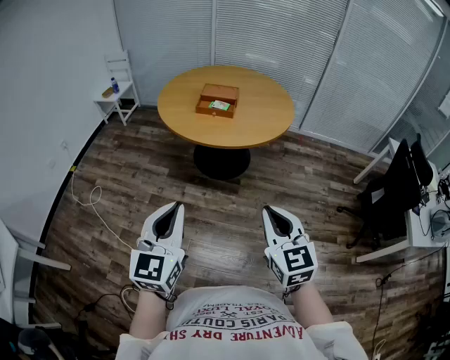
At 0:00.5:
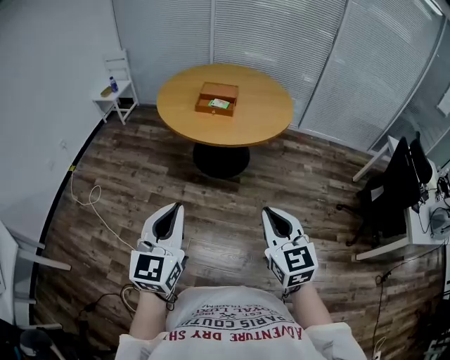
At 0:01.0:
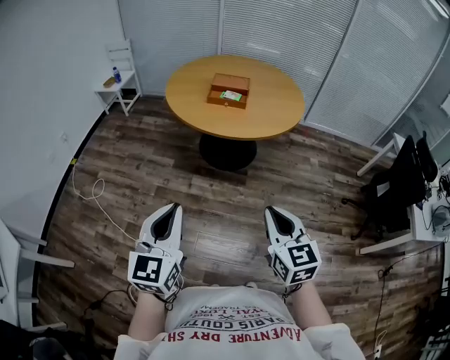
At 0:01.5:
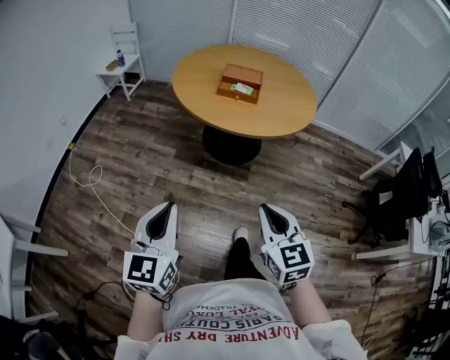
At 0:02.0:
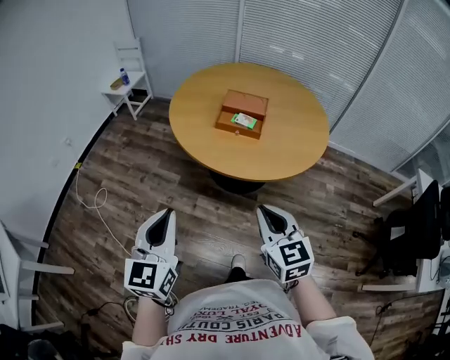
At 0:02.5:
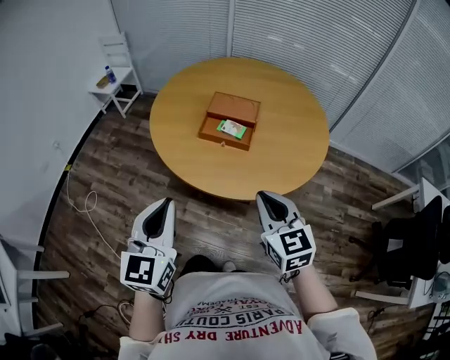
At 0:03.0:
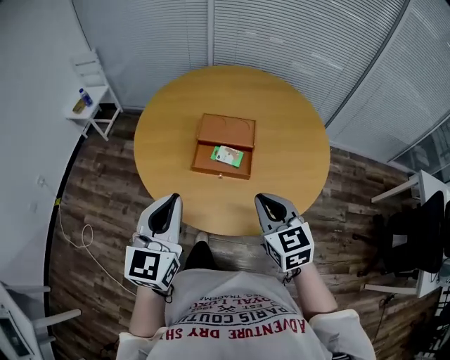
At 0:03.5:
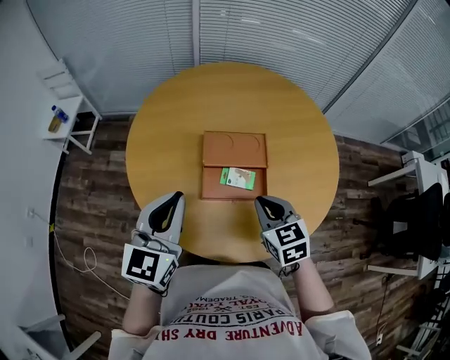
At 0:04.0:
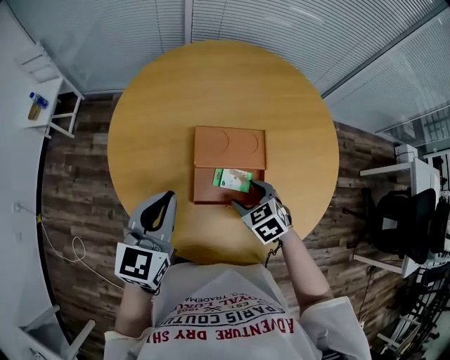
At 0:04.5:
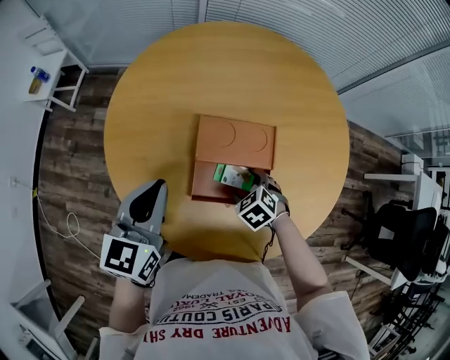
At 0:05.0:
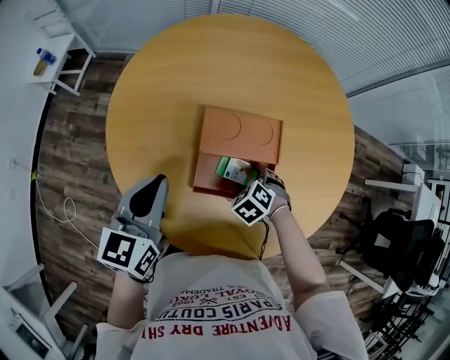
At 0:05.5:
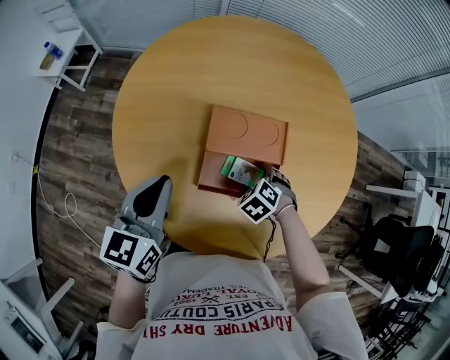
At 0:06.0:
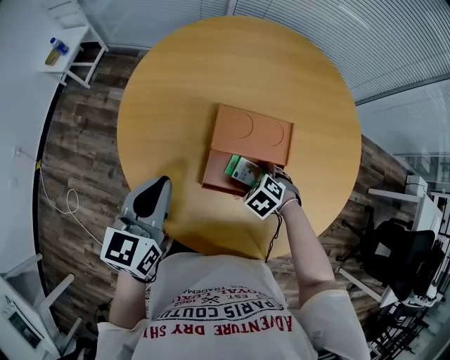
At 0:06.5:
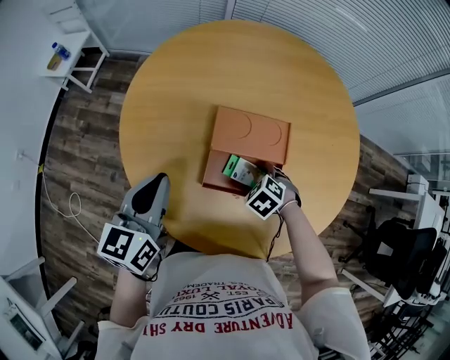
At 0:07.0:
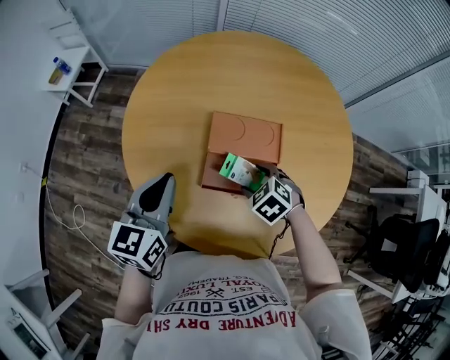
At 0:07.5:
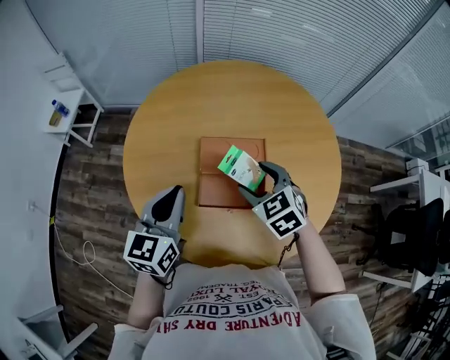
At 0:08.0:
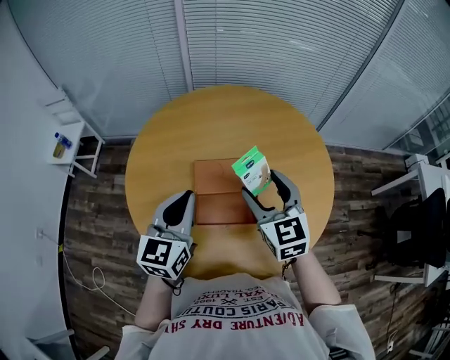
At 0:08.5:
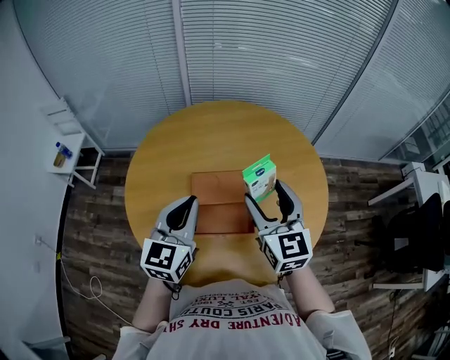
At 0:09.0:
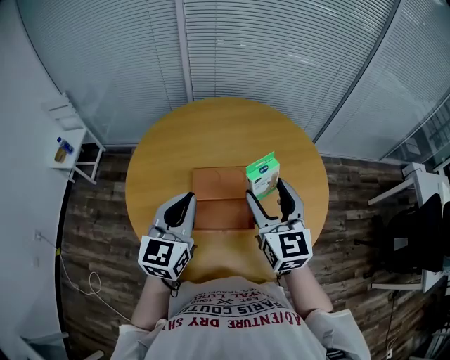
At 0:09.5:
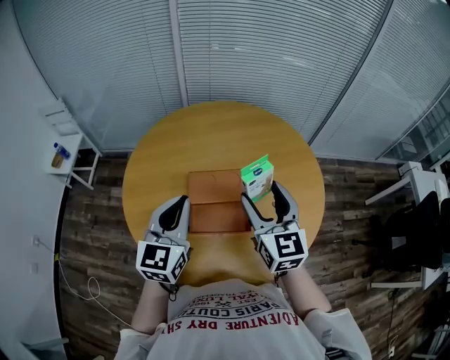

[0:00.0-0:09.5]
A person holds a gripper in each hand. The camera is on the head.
0:00.0 to 0:02.0: Both grippers move forward, some 25 cm.
0:02.0 to 0:04.0: The pair of grippers is taken forward, roughly 50 cm. The left gripper rotates approximately 30 degrees; the right gripper goes some 20 cm downward, tips its fingers downward by about 40 degrees, and opens up.
0:04.0 to 0:05.5: The right gripper travels downward by some 10 cm, and turns by approximately 30 degrees.
0:05.5 to 0:07.5: The left gripper moves upward, about 5 cm. The right gripper is displaced upward by roughly 20 cm, and points its fingers approximately 30 degrees further upward.
0:07.5 to 0:09.5: The right gripper shifts roughly 15 cm upward and to the right, and points its fingers some 40 degrees further upward. The left gripper heads upward and to the right, covering about 10 cm.

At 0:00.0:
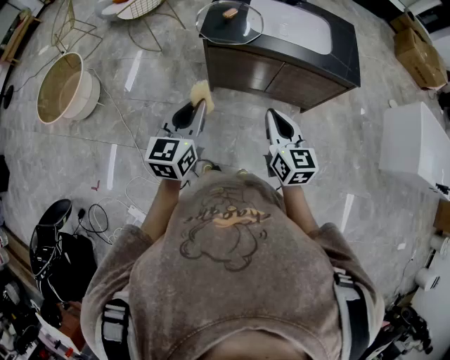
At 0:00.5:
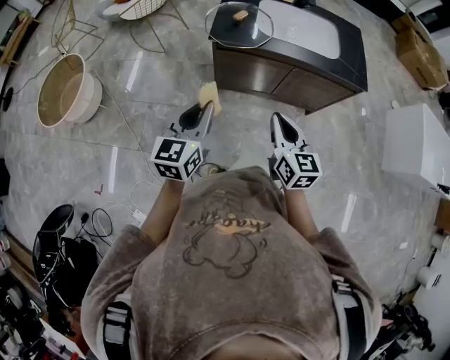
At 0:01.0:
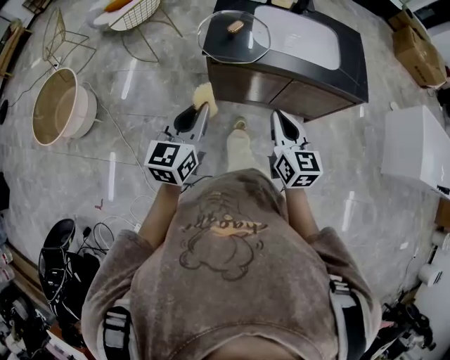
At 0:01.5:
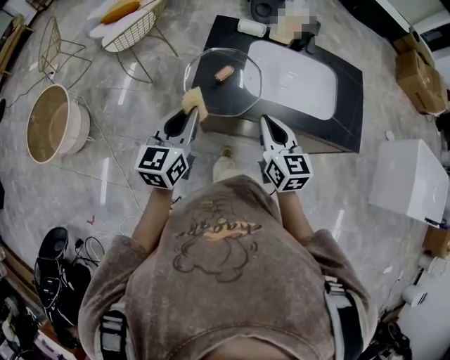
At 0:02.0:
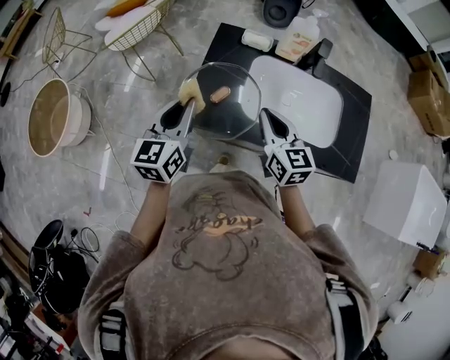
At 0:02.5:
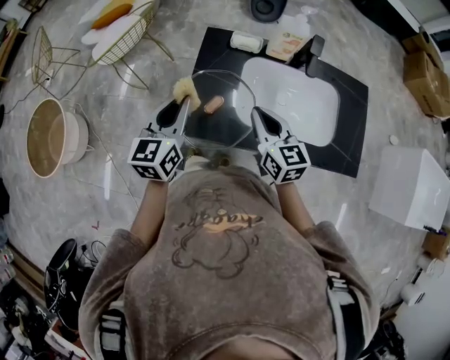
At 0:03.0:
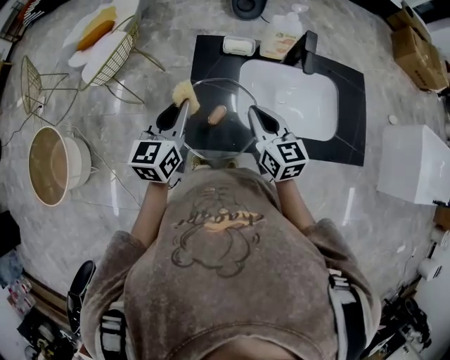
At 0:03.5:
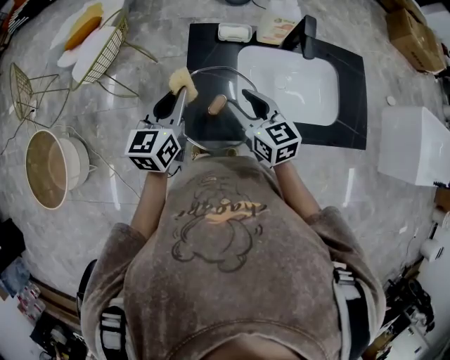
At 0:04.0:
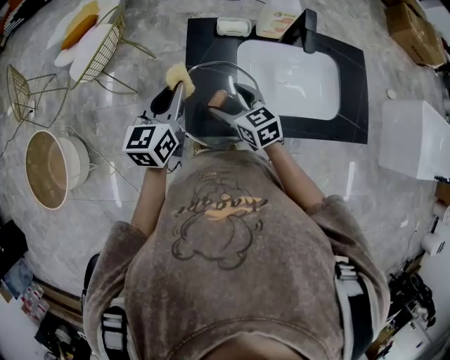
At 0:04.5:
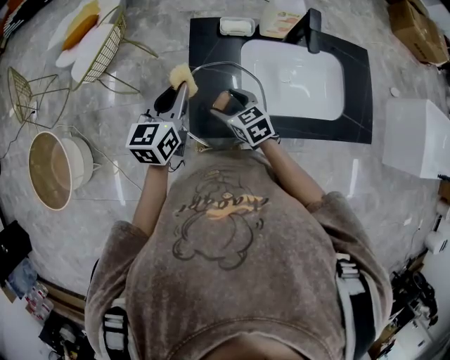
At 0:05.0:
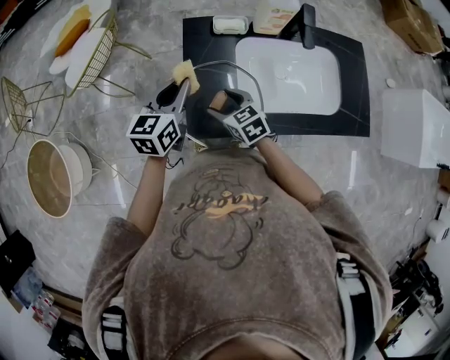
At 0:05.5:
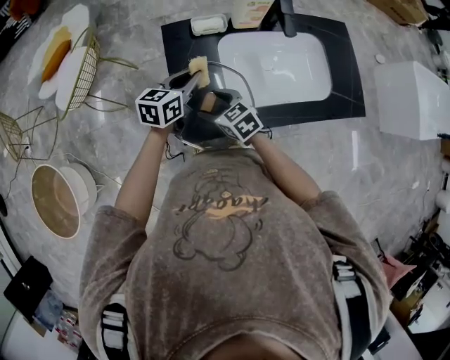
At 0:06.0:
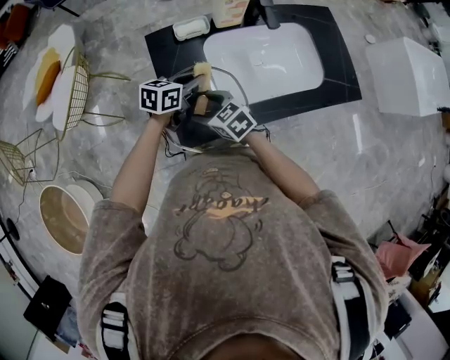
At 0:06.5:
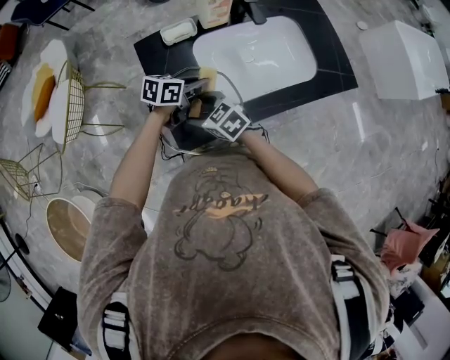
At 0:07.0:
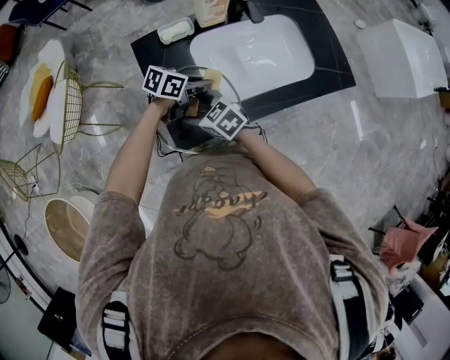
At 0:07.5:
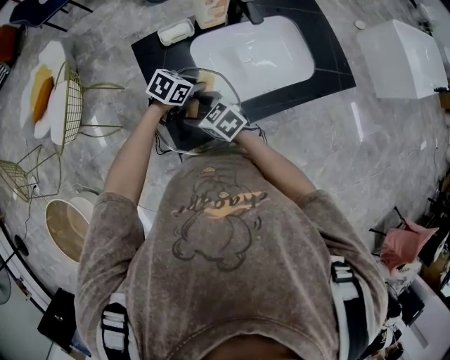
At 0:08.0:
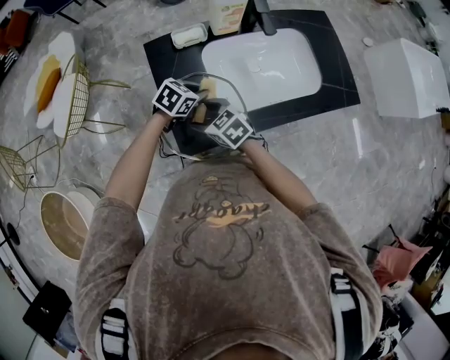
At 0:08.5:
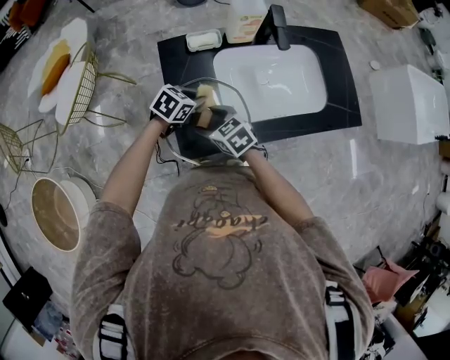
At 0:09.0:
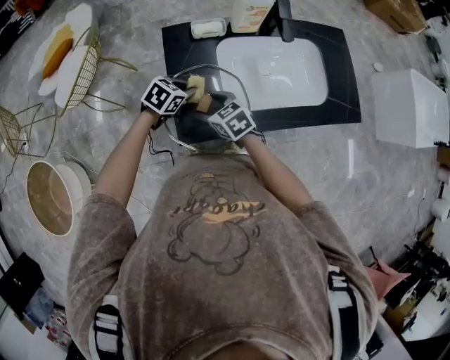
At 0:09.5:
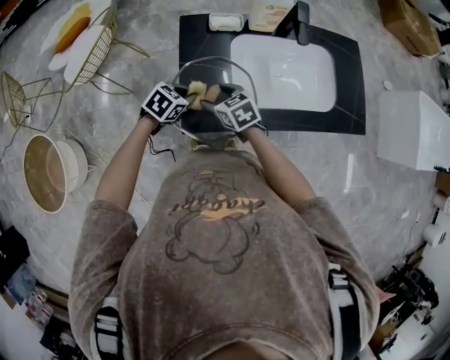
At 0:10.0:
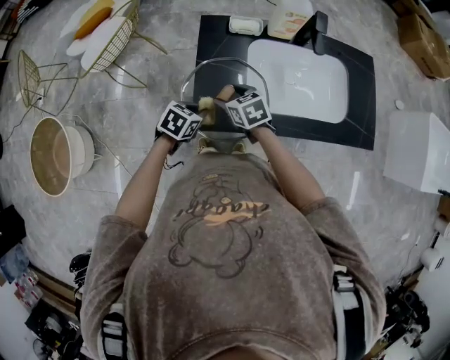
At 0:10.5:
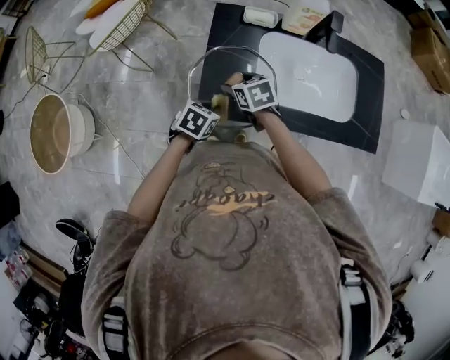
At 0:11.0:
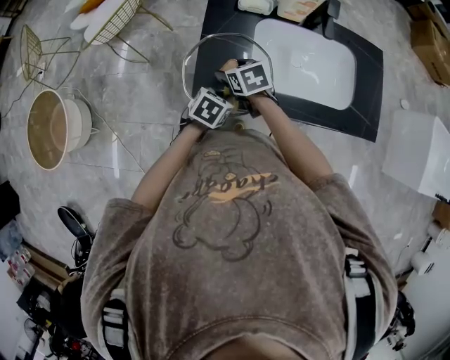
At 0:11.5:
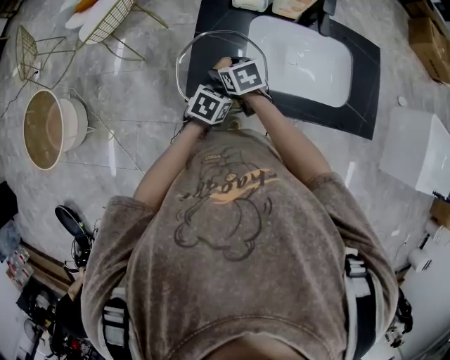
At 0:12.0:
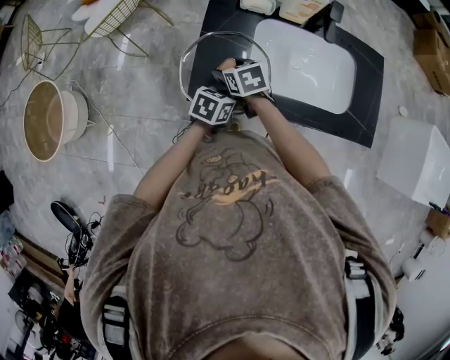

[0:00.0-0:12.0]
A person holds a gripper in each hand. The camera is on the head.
0:00.0 to 0:02.0: Both grippers are carried forward, some 50 cm.
0:02.0 to 0:04.0: The left gripper goes approximately 10 cm forward; the right gripper is displaced to the left, downward and forward by about 15 cm, and opens.
0:04.0 to 0:06.0: The left gripper moves downward, to the right and forward, about 20 cm, and changes its angle by about 50 degrees. The right gripper moves downward, approximately 5 cm.
0:06.0 to 0:08.0: The left gripper moves about 5 cm, and turns by approximately 30 degrees.
0:08.0 to 0:10.0: The left gripper ends up approximately 15 cm from where it was, and swivels approximately 30 degrees.
0:10.0 to 0:12.0: The left gripper moves to the right, about 10 cm, and turns by approximately 20 degrees.

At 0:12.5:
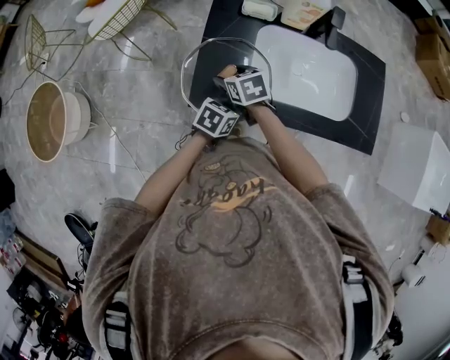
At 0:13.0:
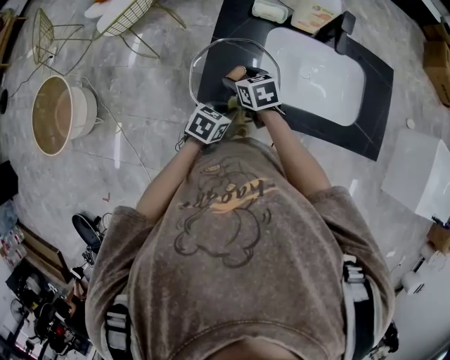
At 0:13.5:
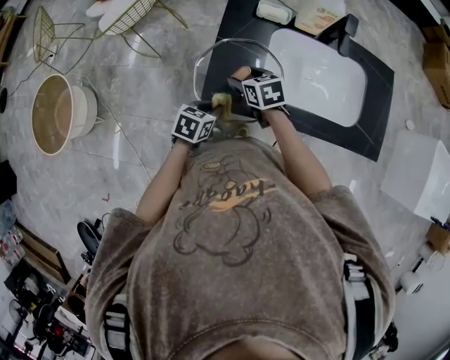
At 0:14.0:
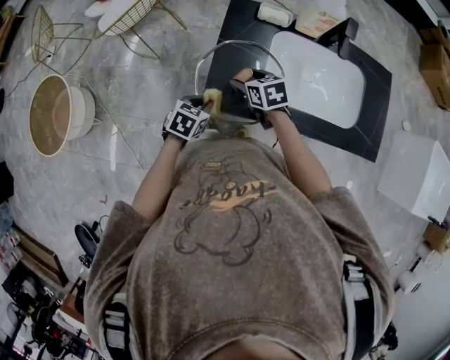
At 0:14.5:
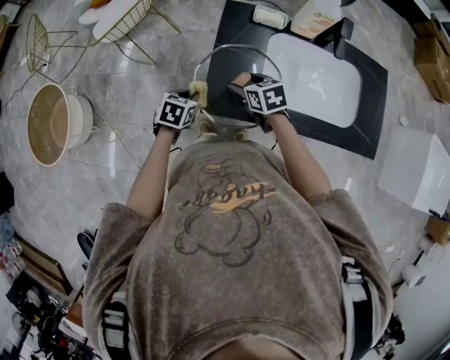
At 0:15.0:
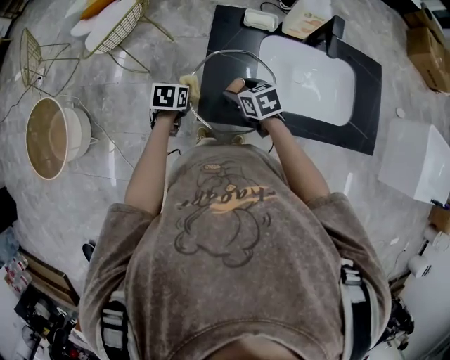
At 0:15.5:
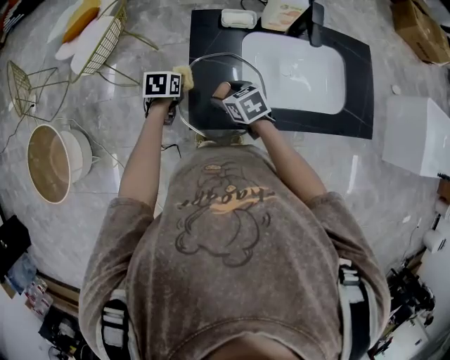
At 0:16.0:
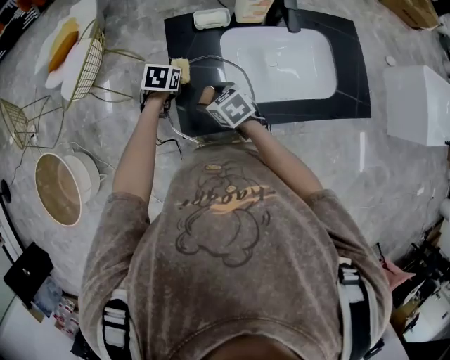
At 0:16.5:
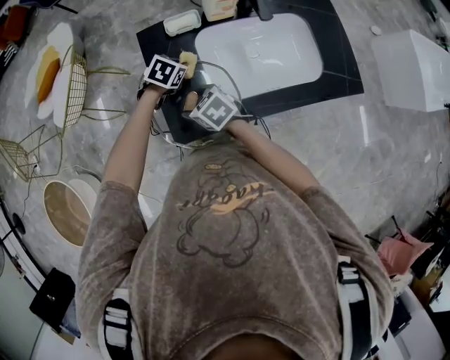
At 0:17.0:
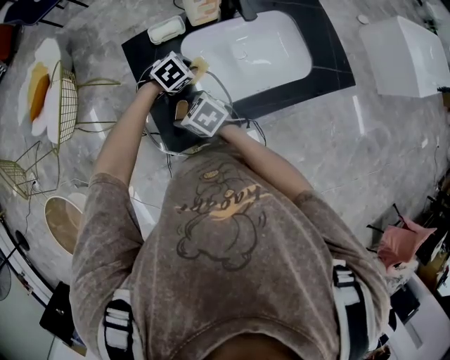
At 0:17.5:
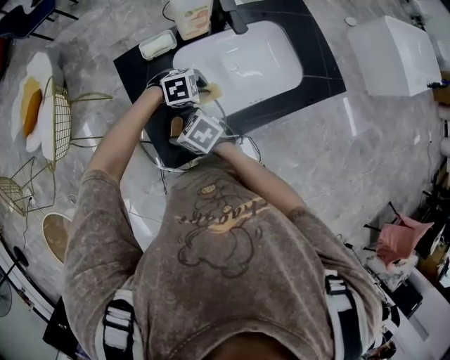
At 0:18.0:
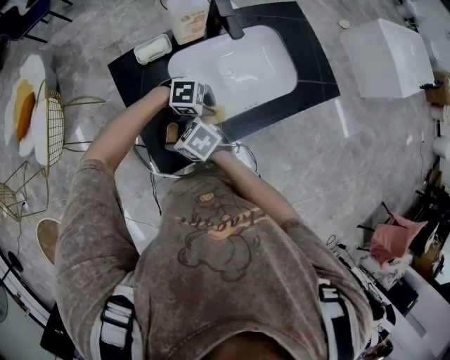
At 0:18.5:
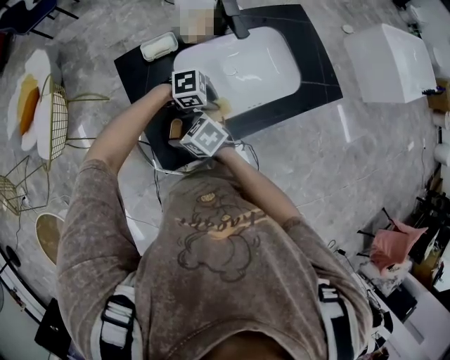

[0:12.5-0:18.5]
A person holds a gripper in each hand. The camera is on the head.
0:12.5 to 0:14.5: The left gripper moves to the left, about 20 cm.
0:14.5 to 0:16.5: The left gripper is displaced to the right and forward by some 25 cm, and swivels some 40 degrees.
0:16.5 to 0:18.5: The left gripper shifts by some 20 cm, and changes its angle by roughly 70 degrees.
